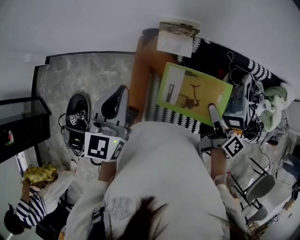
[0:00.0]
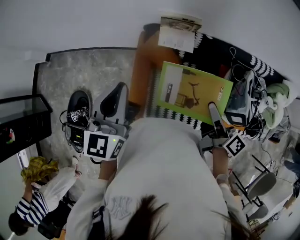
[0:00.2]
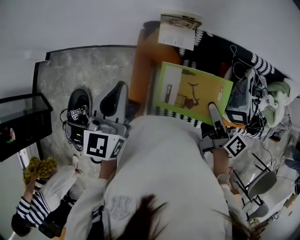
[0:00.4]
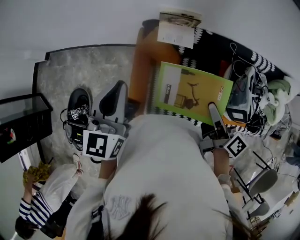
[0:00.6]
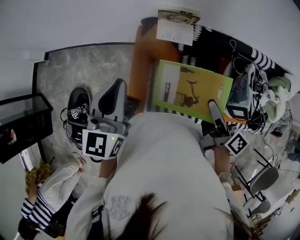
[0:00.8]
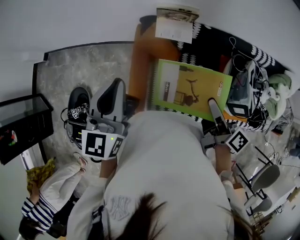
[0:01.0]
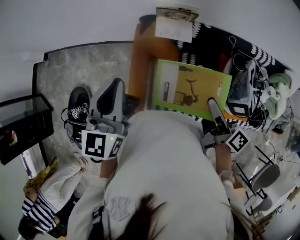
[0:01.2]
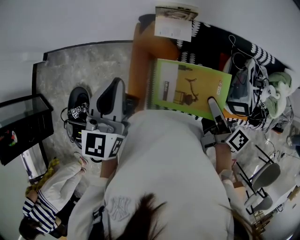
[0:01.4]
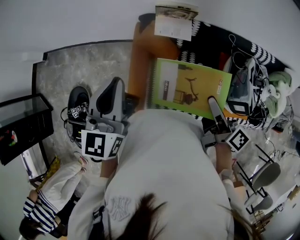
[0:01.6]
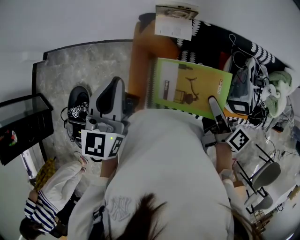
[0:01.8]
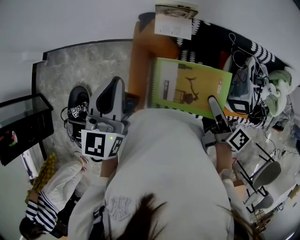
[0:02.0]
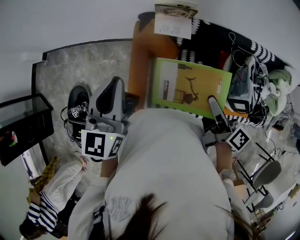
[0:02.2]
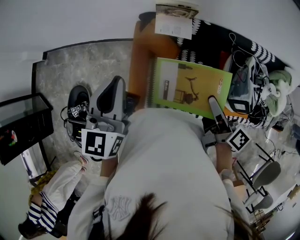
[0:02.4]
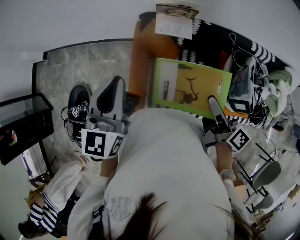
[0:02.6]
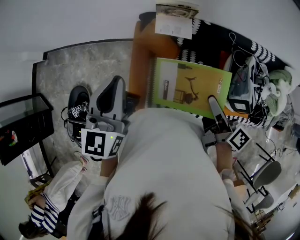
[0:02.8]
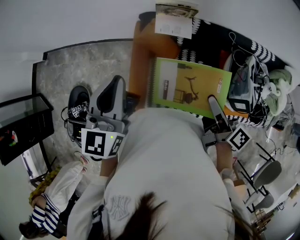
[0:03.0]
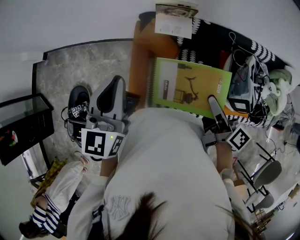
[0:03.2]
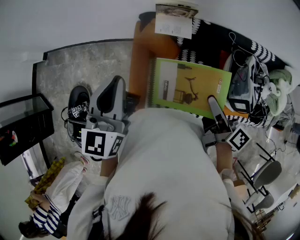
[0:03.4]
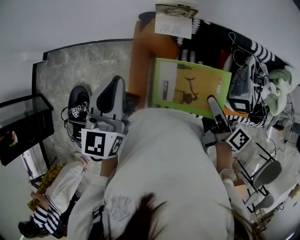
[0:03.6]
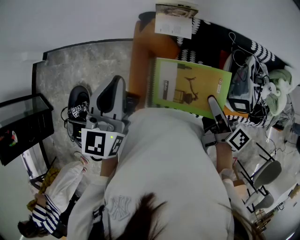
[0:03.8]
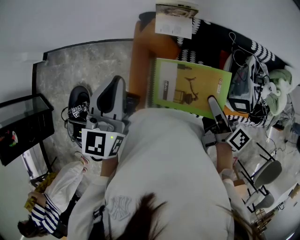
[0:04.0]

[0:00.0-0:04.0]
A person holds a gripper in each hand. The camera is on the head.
0:00.0 to 0:01.4: There are only small adjustments of the grippers.
0:01.4 to 0:04.0: Both grippers stay about where they are.

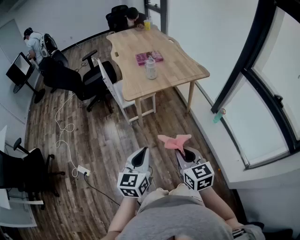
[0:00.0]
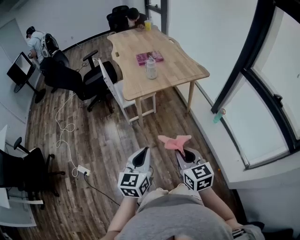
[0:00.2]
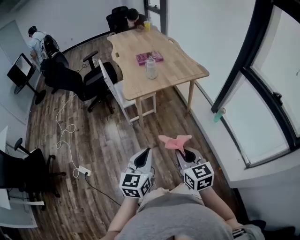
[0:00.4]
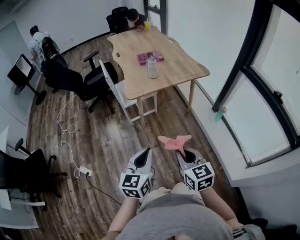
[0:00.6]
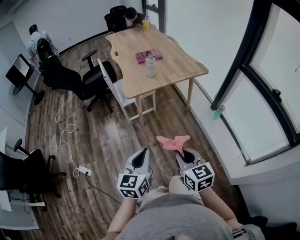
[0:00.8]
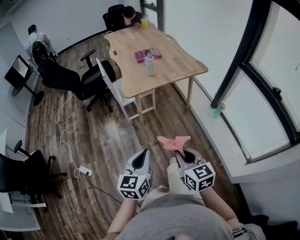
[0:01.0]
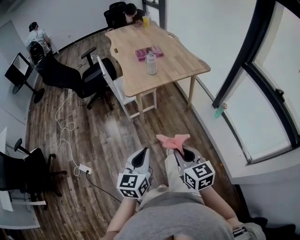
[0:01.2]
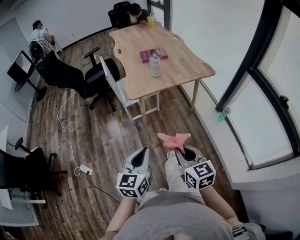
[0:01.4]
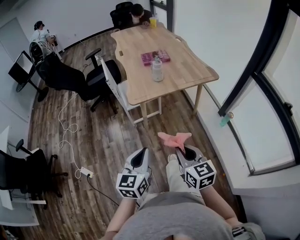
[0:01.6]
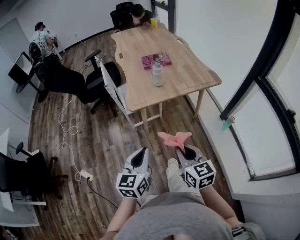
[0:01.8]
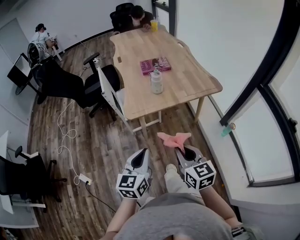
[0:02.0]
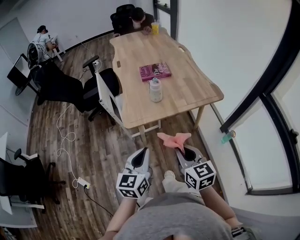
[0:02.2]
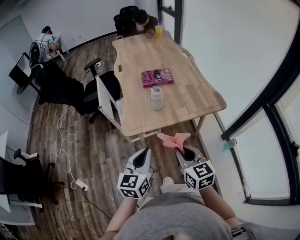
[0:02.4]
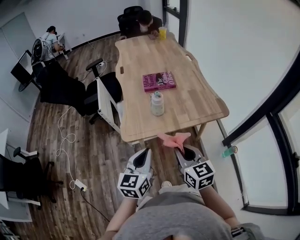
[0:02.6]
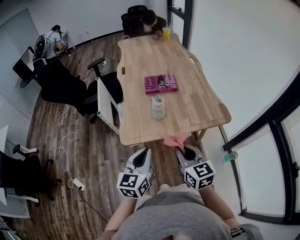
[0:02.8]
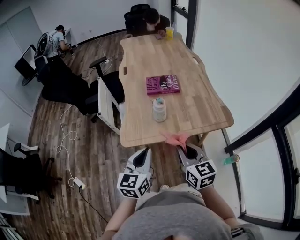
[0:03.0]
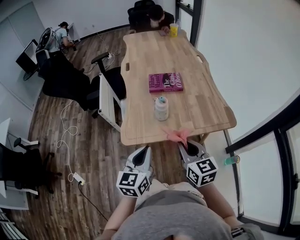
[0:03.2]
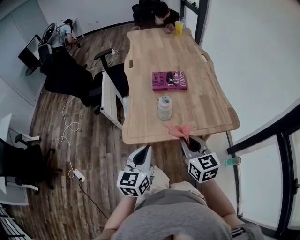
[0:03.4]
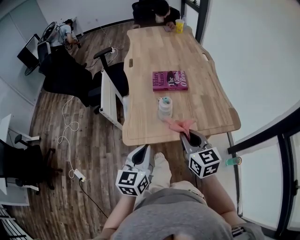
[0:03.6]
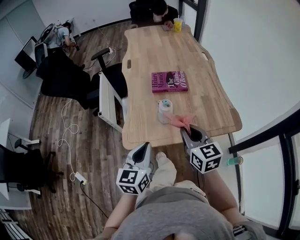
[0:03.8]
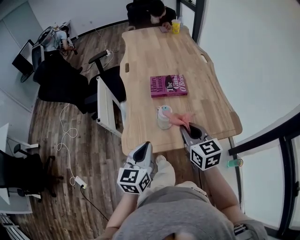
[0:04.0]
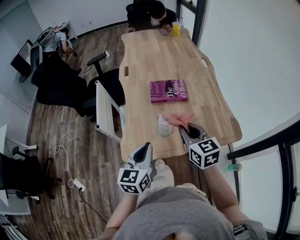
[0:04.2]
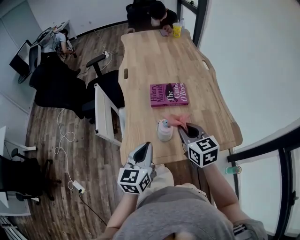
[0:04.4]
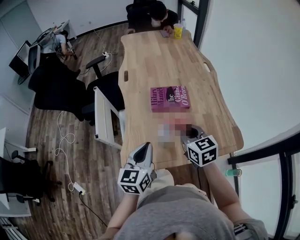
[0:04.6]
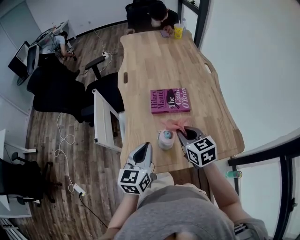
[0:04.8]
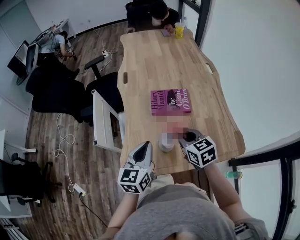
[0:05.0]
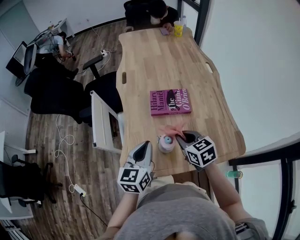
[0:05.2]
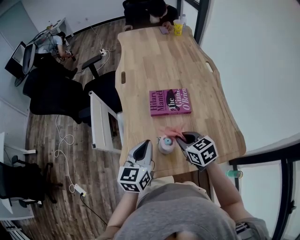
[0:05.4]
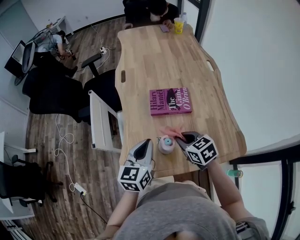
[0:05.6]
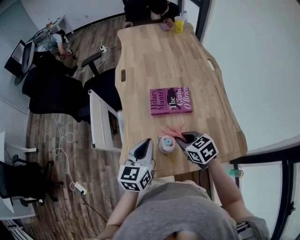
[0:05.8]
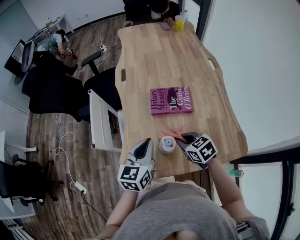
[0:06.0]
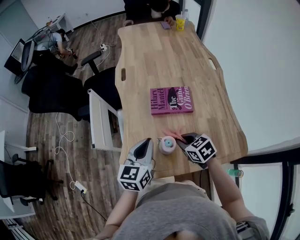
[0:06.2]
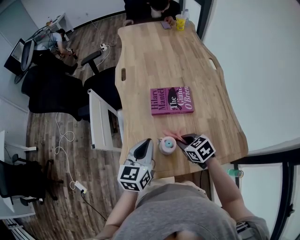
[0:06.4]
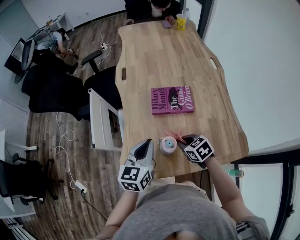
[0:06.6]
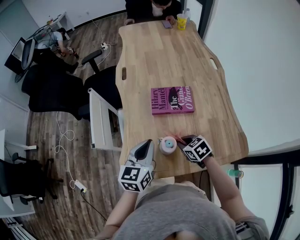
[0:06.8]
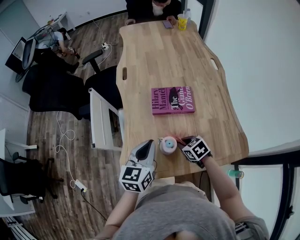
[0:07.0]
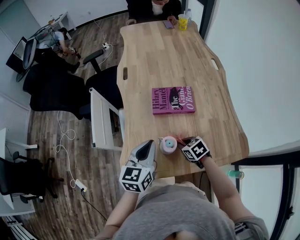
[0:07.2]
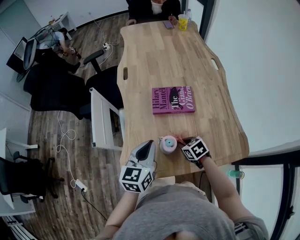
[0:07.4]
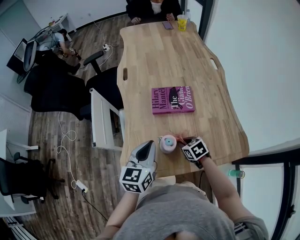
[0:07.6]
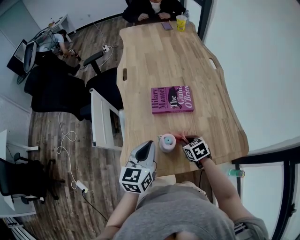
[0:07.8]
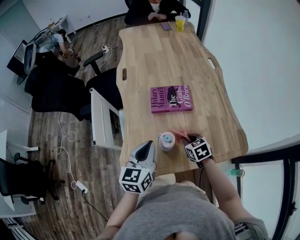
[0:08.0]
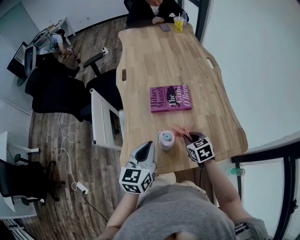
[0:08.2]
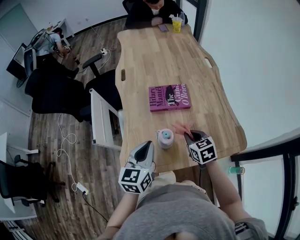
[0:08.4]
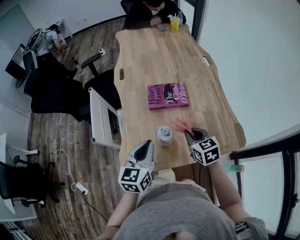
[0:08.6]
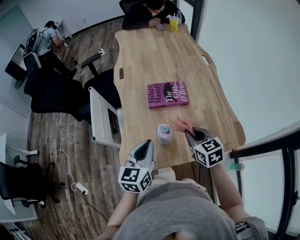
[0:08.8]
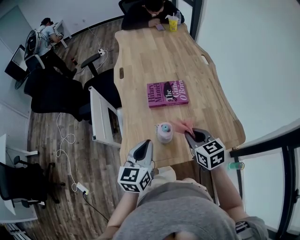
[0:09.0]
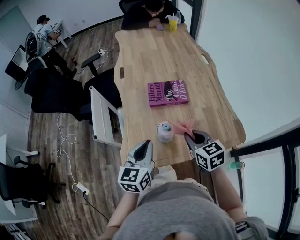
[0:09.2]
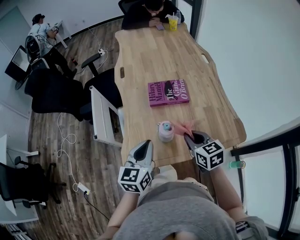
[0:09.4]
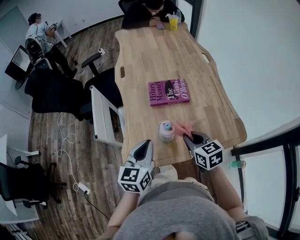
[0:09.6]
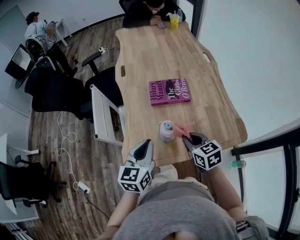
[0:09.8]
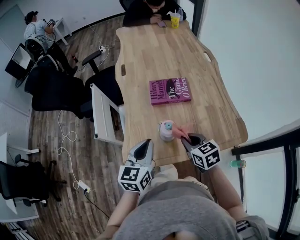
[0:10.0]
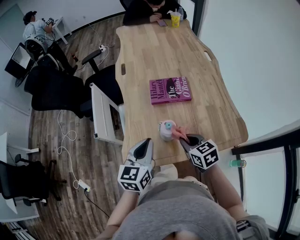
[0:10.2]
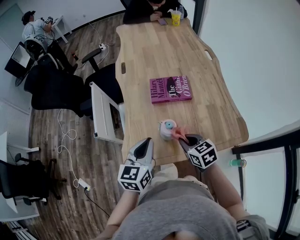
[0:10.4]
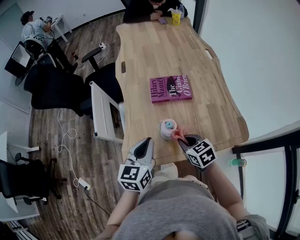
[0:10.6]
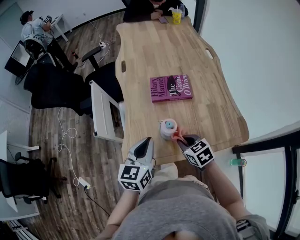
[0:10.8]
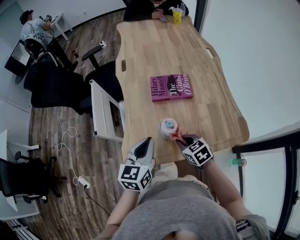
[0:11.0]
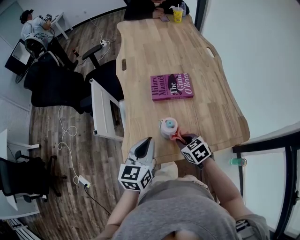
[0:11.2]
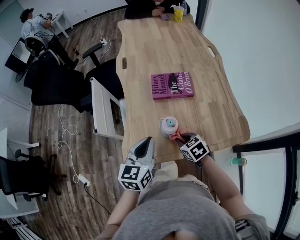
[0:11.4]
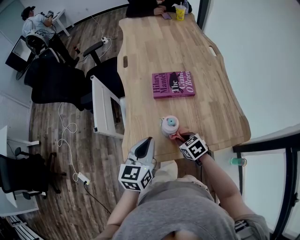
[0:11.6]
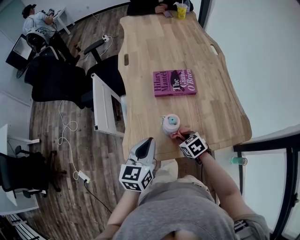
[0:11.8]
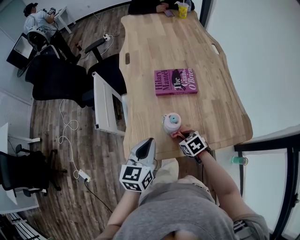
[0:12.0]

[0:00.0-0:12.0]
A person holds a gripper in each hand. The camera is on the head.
0:00.0 to 0:01.6: The grippers both shift forward by approximately 5 cm.
0:01.6 to 0:03.0: Both grippers move forward, about 35 cm.
0:03.0 to 0:04.4: The two grippers go approximately 20 cm forward.
0:04.4 to 0:06.0: The left gripper travels forward by some 10 cm. The right gripper moves downward and forward, roughly 15 cm, and changes its angle by roughly 30 degrees.
0:06.0 to 0:07.6: The right gripper is displaced downward by approximately 10 cm.
0:07.6 to 0:09.0: The left gripper travels backward by approximately 5 cm. Meanwhile the right gripper is displaced upward by about 20 cm, and turns by about 30 degrees.
0:09.0 to 0:10.4: The right gripper heads downward, covering approximately 5 cm.
0:10.4 to 0:12.0: The right gripper moves downward, some 10 cm.

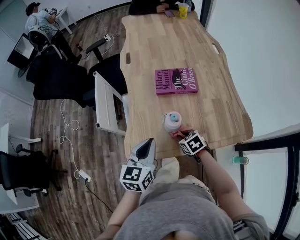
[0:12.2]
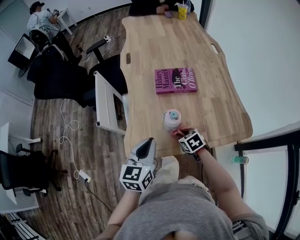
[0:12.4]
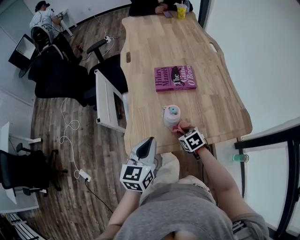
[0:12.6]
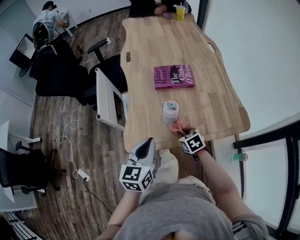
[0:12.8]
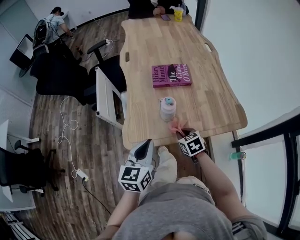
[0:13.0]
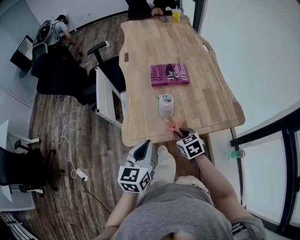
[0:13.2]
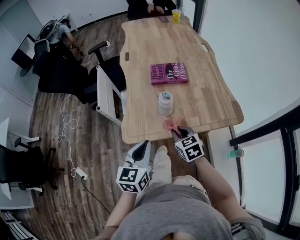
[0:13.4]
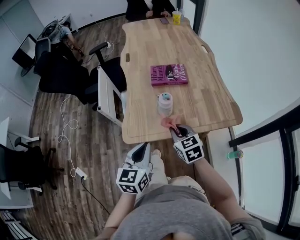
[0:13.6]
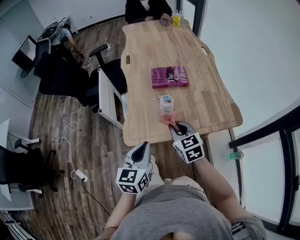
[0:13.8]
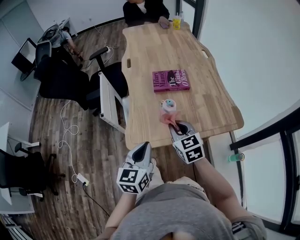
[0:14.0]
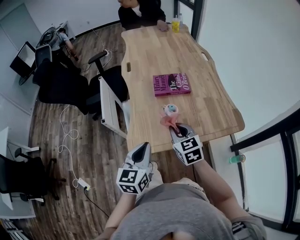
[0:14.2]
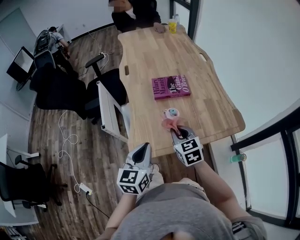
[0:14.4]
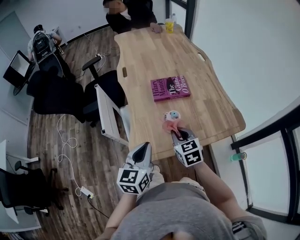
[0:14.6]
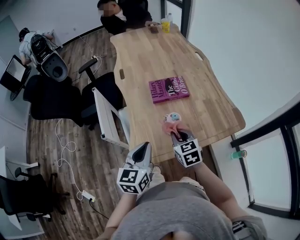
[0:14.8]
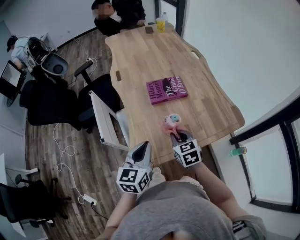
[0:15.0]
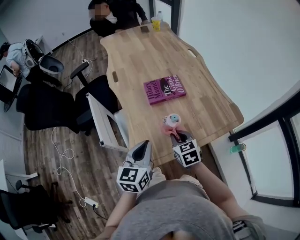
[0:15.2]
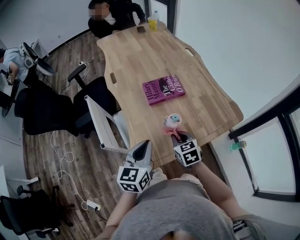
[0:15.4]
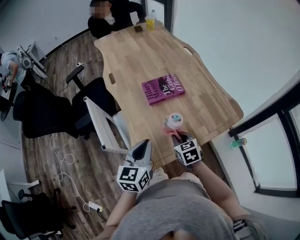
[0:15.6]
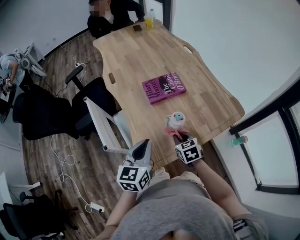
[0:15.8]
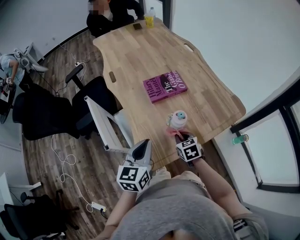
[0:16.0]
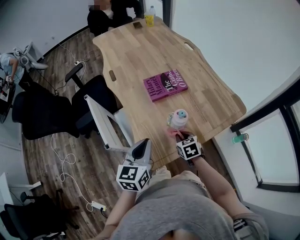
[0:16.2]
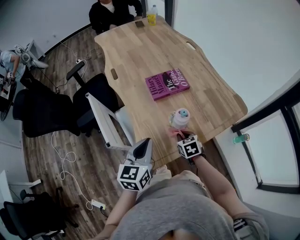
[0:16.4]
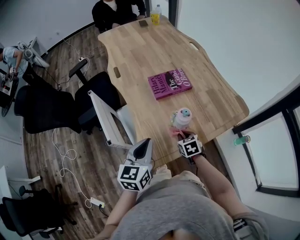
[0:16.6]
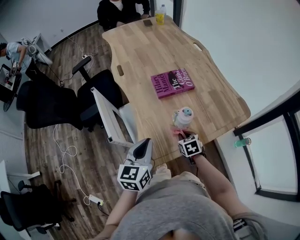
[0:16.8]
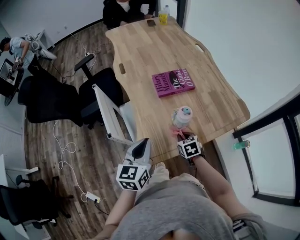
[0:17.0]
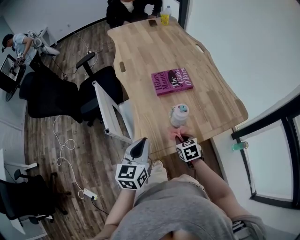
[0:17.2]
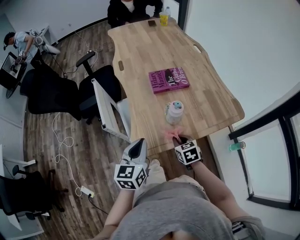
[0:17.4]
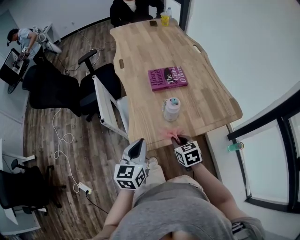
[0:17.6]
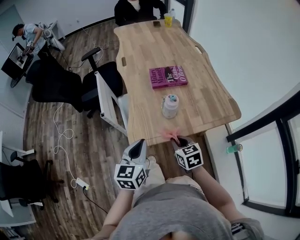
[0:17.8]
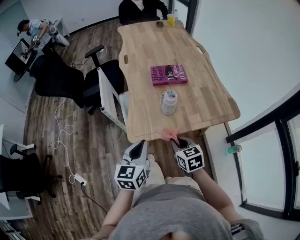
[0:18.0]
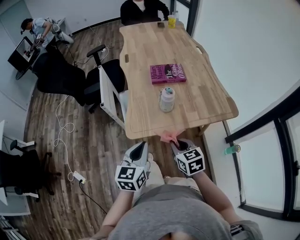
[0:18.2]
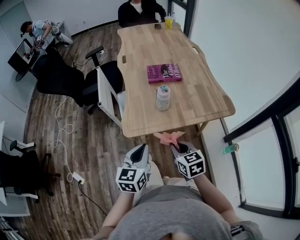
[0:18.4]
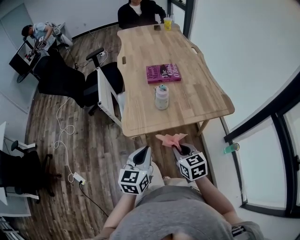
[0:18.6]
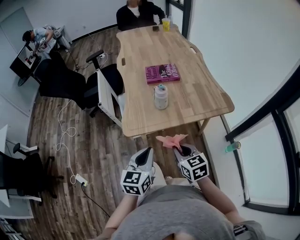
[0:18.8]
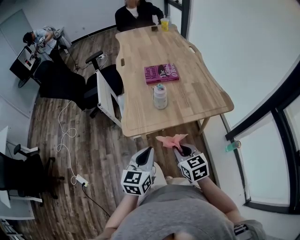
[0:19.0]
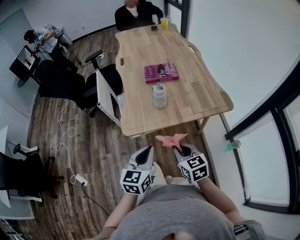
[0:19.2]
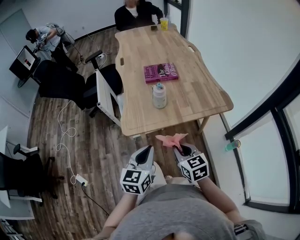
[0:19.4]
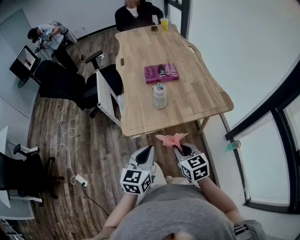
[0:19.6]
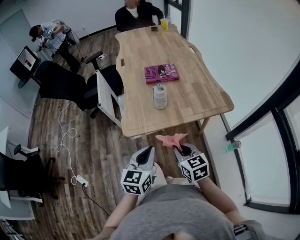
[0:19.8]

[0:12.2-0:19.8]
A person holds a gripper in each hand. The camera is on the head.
0:12.2 to 0:13.8: The right gripper heads upward, covering roughly 20 cm, and rotates some 30 degrees, while the left gripper shifts about 10 cm backward.
0:13.8 to 0:15.2: The right gripper is displaced forward and downward by about 10 cm. The left gripper travels forward by approximately 15 cm.
0:15.2 to 0:16.8: The right gripper travels downward by some 10 cm. The left gripper ends up about 5 cm from where it was.
0:16.8 to 0:18.2: The left gripper goes roughly 20 cm backward. The right gripper moves backward and upward, some 25 cm, and turns by about 20 degrees.
0:18.2 to 0:19.8: The right gripper heads backward, covering approximately 5 cm; the left gripper heads backward and to the right, covering approximately 10 cm.
